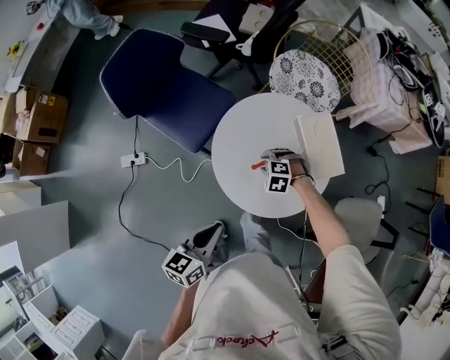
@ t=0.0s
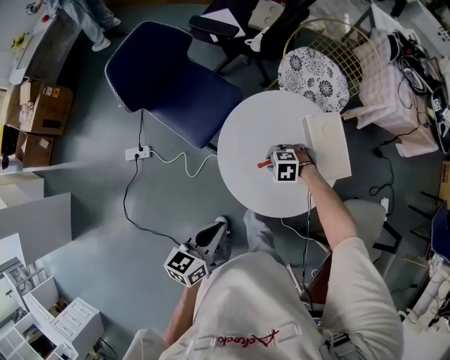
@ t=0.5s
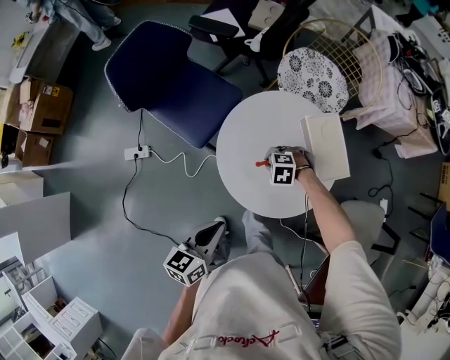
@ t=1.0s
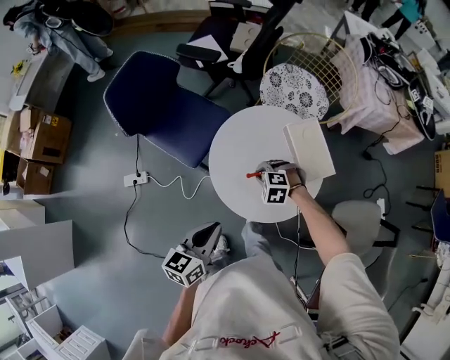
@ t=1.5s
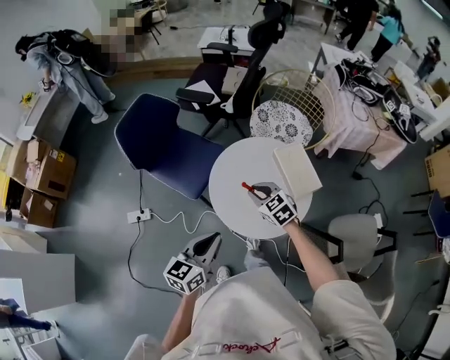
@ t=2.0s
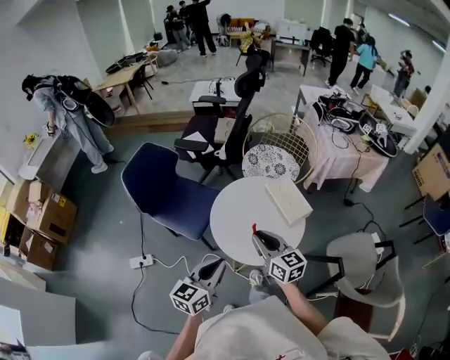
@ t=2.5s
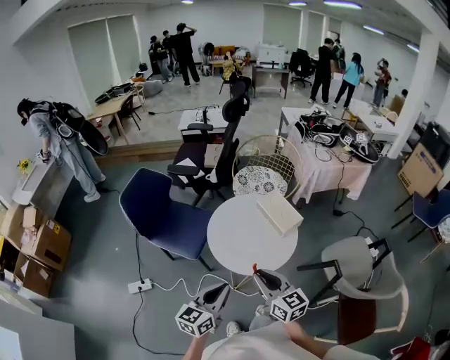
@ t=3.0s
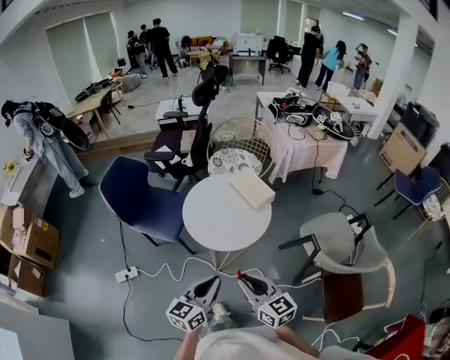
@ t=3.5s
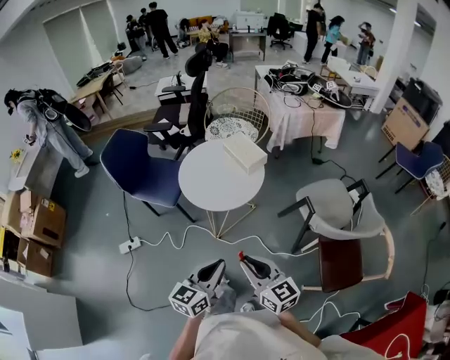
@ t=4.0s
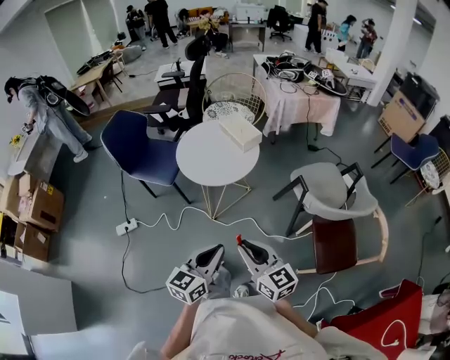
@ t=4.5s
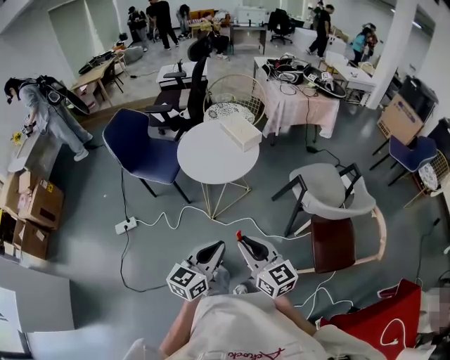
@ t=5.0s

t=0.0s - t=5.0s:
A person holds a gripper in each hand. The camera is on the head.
t=0.0s - t=2.5s: The right gripper moves upward, about 30 cm, tips its fingers upward by about 70 degrees, and closes. Meanwhile the left gripper goes about 10 cm upward, and swivels about 20 degrees.
t=2.5s - t=5.0s: The left gripper is displaced backward and to the right by approximately 40 cm. The right gripper goes approximately 40 cm backward.

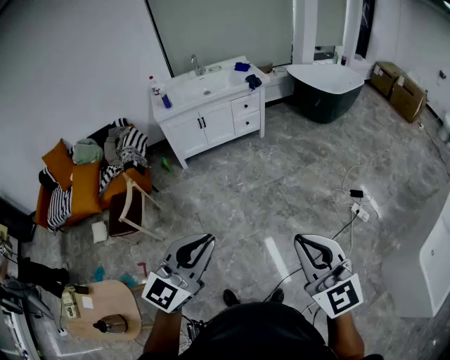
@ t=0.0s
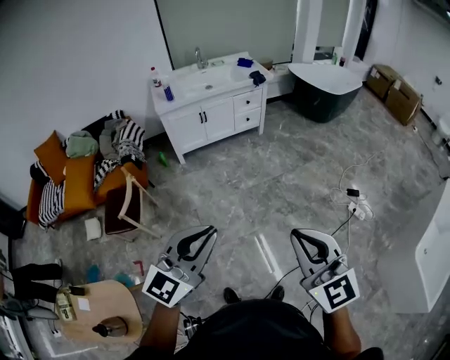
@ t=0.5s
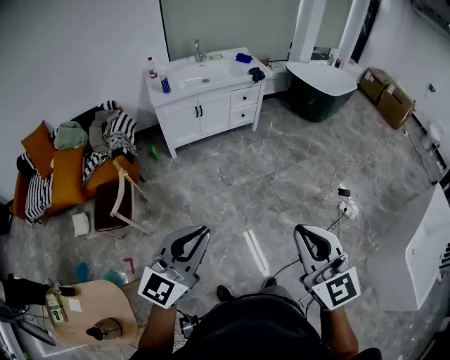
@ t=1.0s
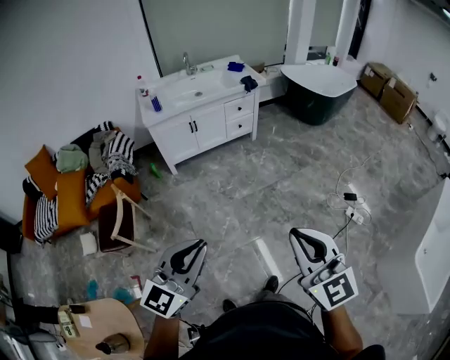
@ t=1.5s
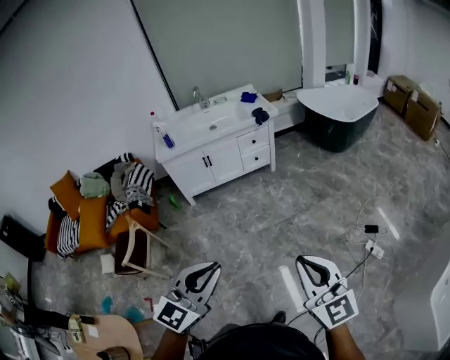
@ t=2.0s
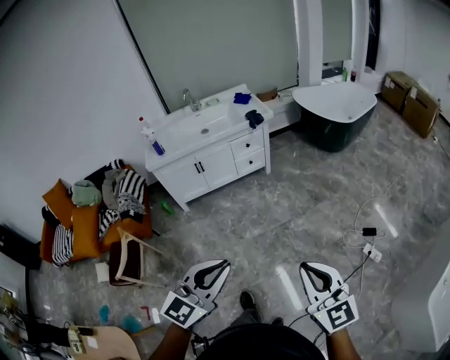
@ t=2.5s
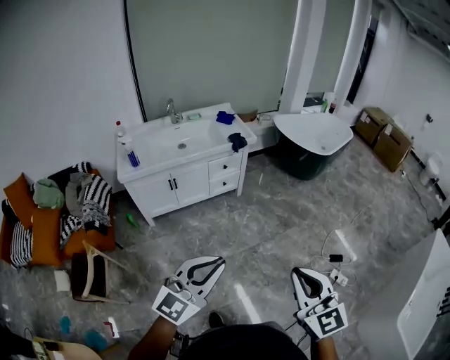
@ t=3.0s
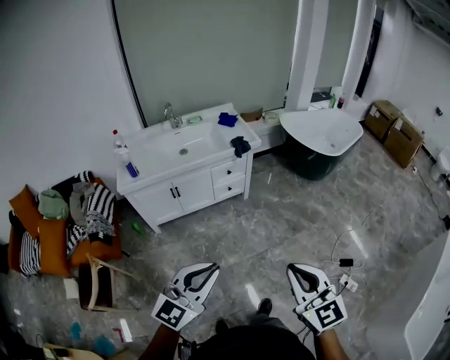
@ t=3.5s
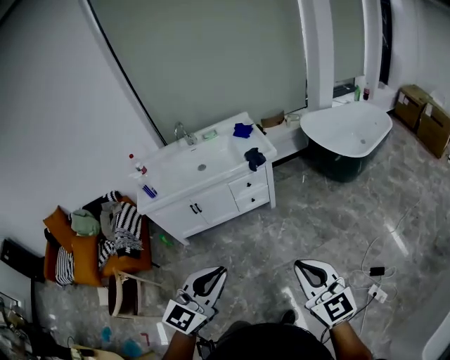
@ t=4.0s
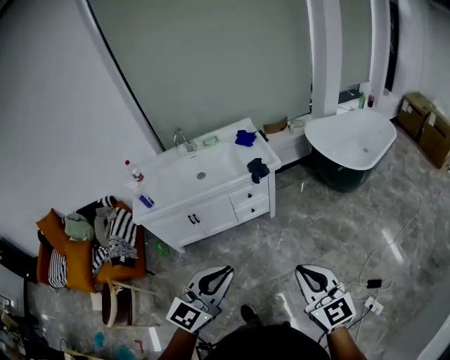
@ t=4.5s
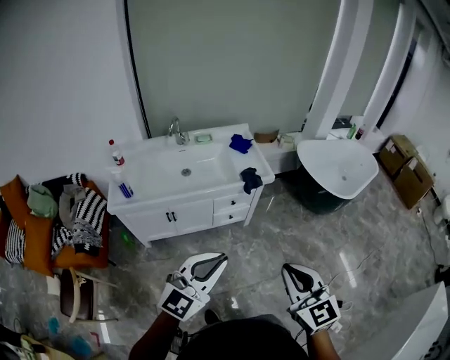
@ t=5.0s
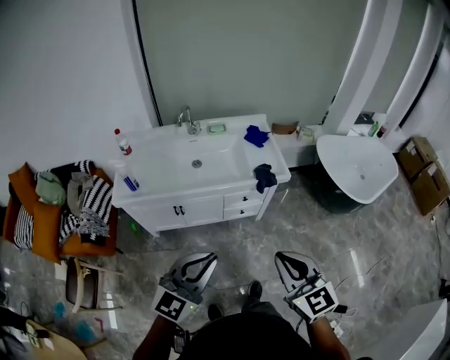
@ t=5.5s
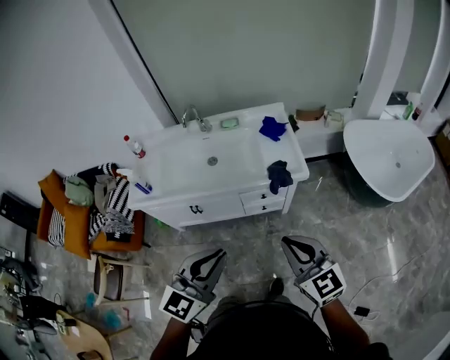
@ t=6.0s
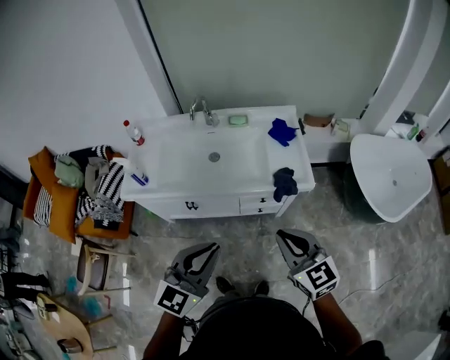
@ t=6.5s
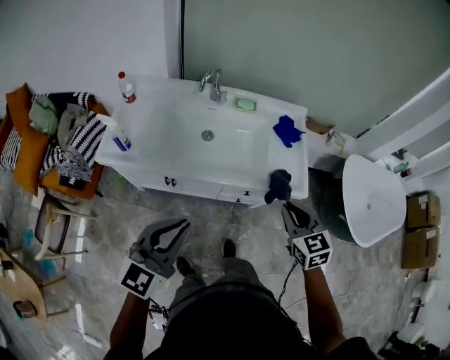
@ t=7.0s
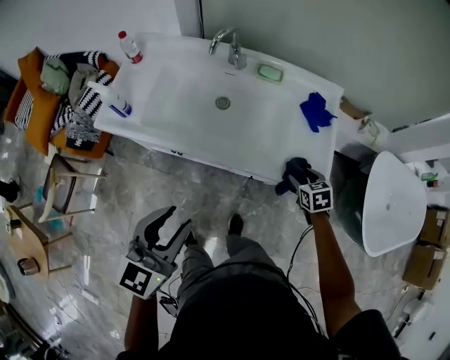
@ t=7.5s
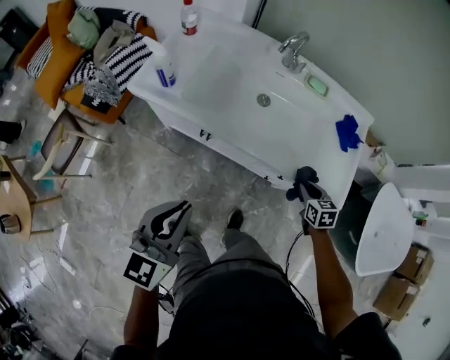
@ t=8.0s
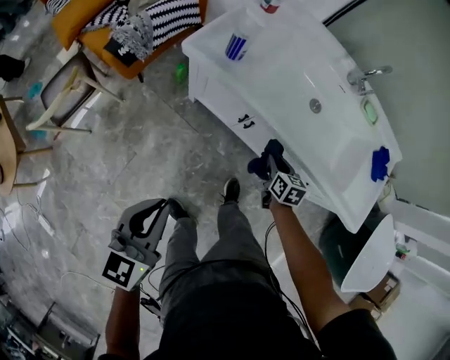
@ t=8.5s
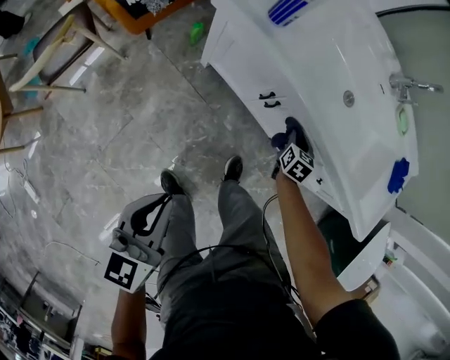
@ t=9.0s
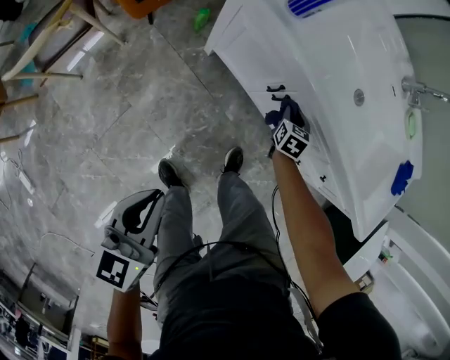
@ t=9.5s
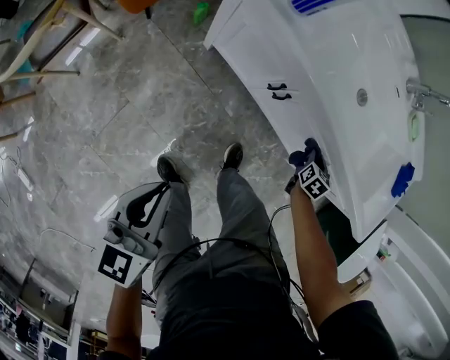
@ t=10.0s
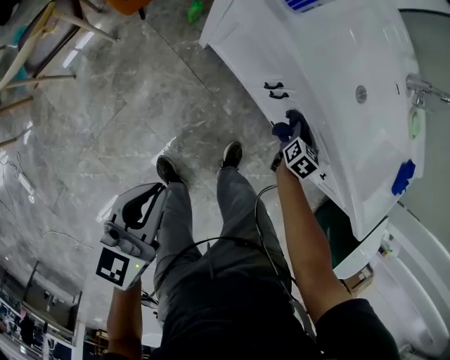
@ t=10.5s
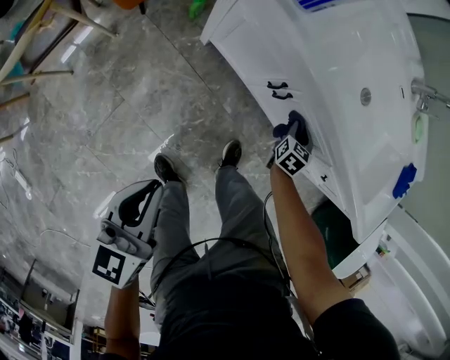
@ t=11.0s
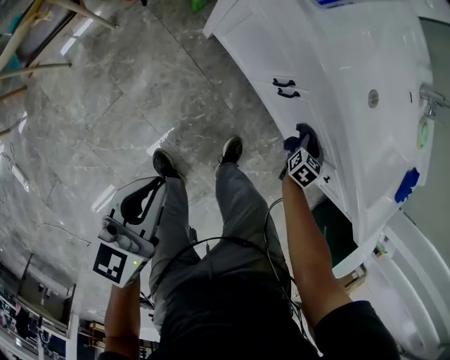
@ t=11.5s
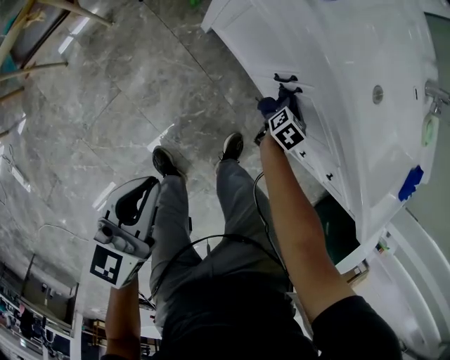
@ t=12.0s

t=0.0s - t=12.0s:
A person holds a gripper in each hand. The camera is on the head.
t=0.0s - t=2.0s: The two grippers go roughly 20 cm forward.
t=2.0s - t=4.0s: Both grippers move forward, some 40 cm.
t=4.0s - t=6.0s: Both grippers travel together forward, about 35 cm.
t=6.0s - t=8.0s: The left gripper goes some 25 cm to the left, forward and downward, swivels approximately 40 degrees, and opens, then closes again, while the right gripper is displaced forward and downward by approximately 40 cm, tilts its fingers some 40 degrees downward, and opens, then closes again.
t=8.0s - t=10.0s: The two grippers go approximately 30 cm downward and to the left. The right gripper swivels about 20 degrees; the left gripper rotates some 30 degrees.
t=10.0s - t=12.0s: The left gripper goes some 5 cm downward; the right gripper goes left and right, approximately 15 cm each way, reversing 2 times.

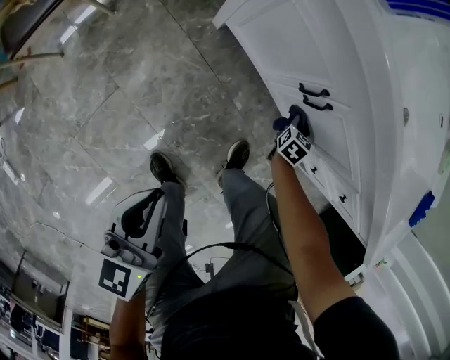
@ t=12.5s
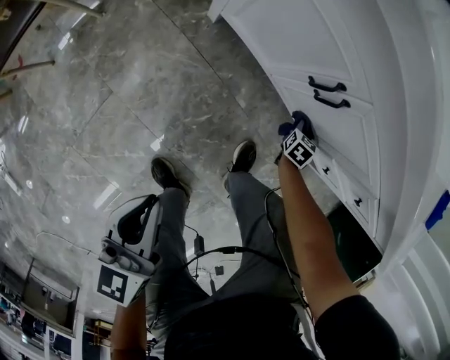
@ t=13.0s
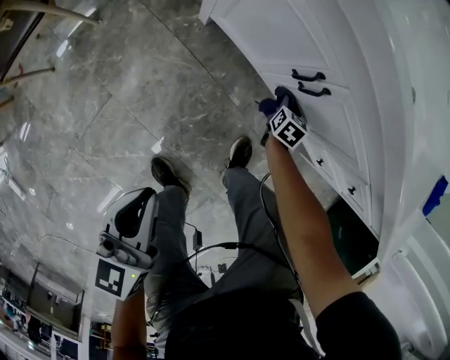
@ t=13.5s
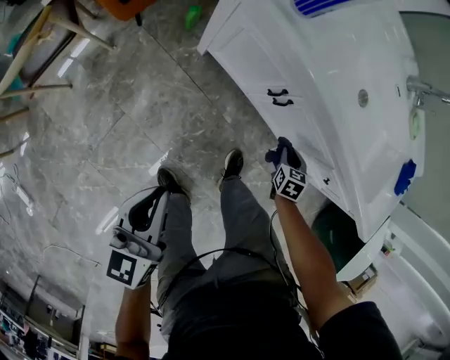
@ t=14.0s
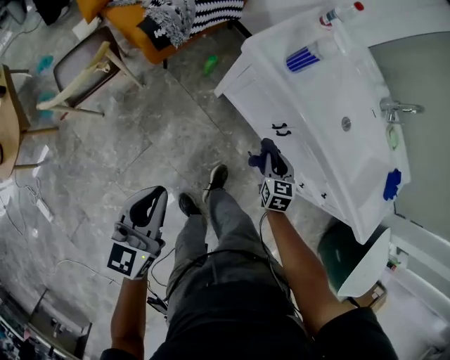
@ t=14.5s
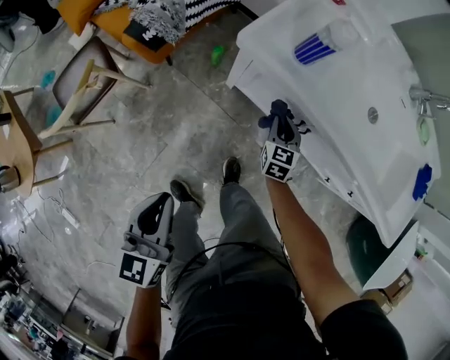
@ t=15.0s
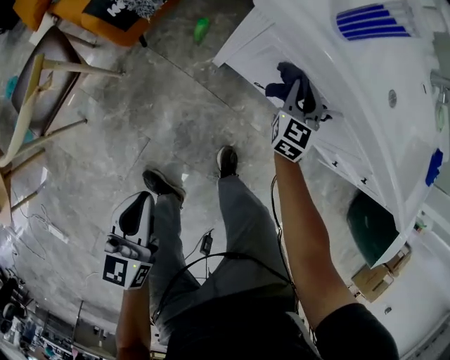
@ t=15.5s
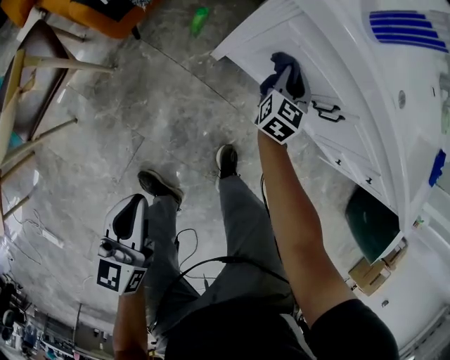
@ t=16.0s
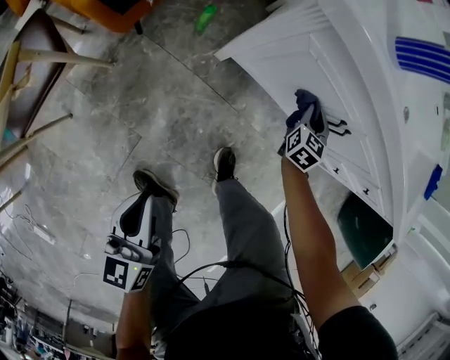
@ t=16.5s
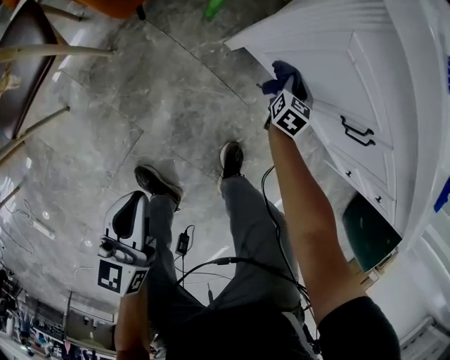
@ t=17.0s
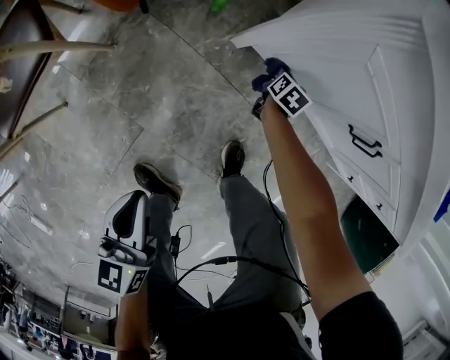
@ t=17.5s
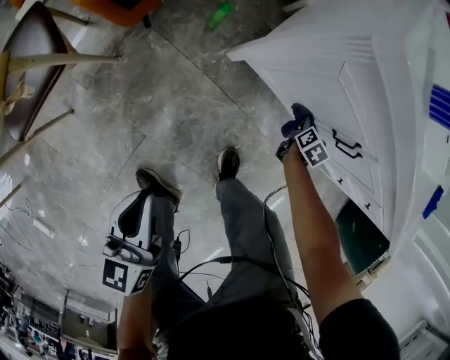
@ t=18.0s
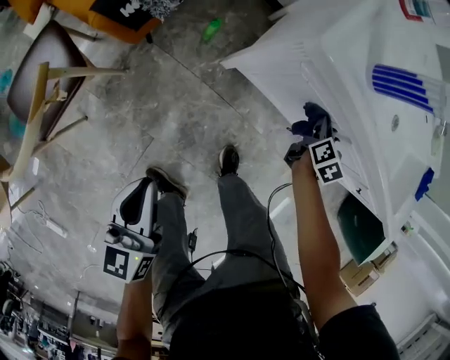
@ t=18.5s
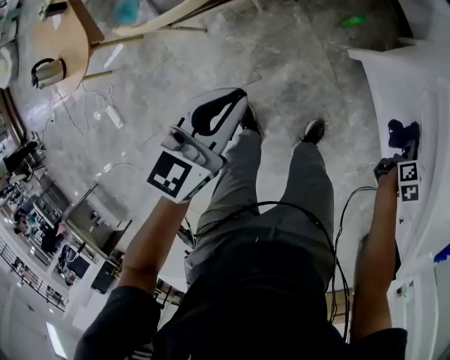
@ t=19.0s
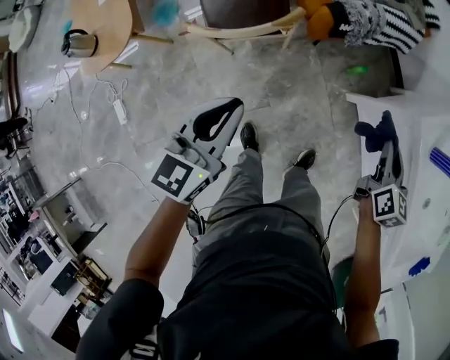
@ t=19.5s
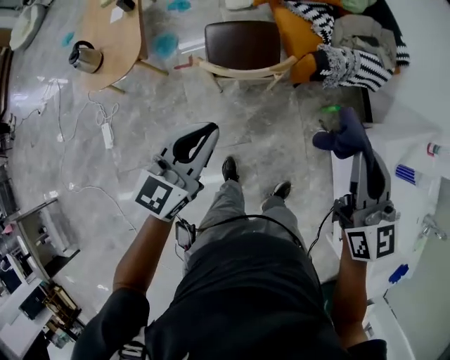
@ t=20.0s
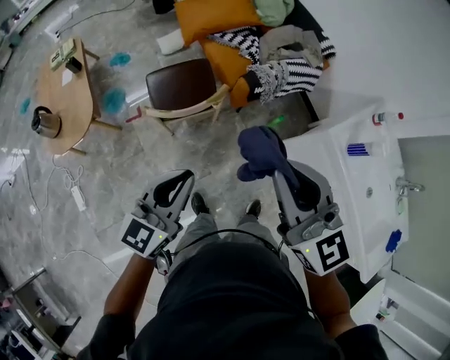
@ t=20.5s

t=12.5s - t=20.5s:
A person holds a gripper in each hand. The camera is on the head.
t=12.5s - t=14.5s: Both grippers travel together upward and to the left, approximately 30 cm. The right gripper turns by roughly 30 degrees.
t=14.5s - t=16.5s: The left gripper shifts about 30 cm downward. Meanwhile the right gripper travels downward and forward by some 25 cm, and changes its angle by some 30 degrees.
t=16.5s - t=18.5s: The right gripper goes downward and returns, some 20 cm each way, and turns by some 30 degrees; the left gripper is displaced upward, forward and to the left by some 10 cm.
t=18.5s - t=20.5s: The left gripper shifts roughly 35 cm upward, and swivels about 20 degrees. Meanwhile the right gripper ends up roughly 80 cm from where it was, and changes its angle by some 100 degrees.

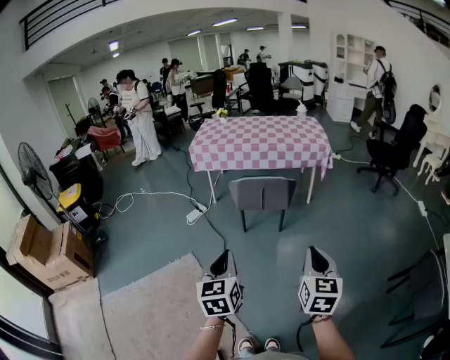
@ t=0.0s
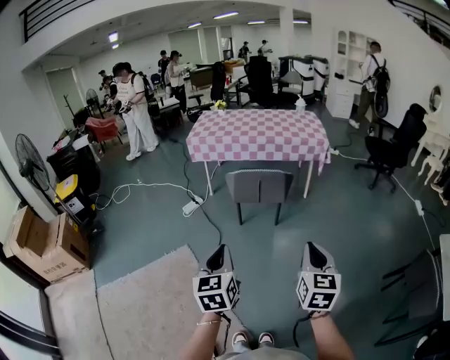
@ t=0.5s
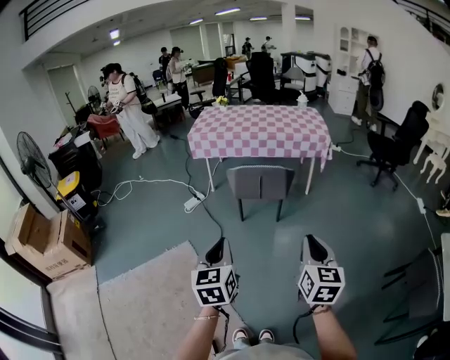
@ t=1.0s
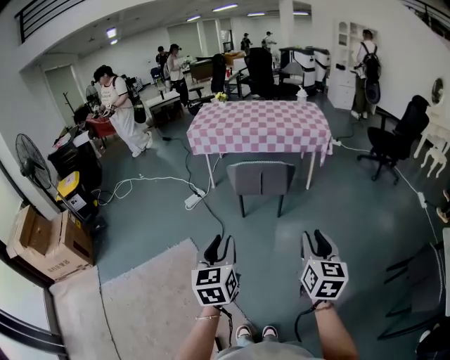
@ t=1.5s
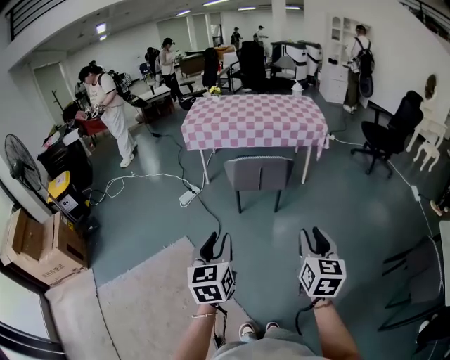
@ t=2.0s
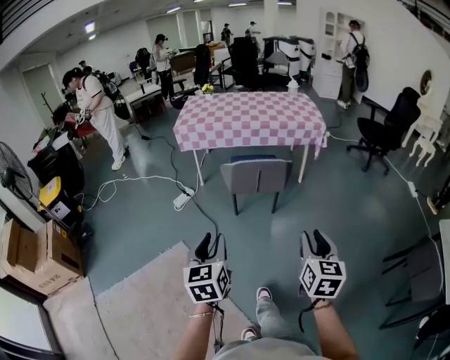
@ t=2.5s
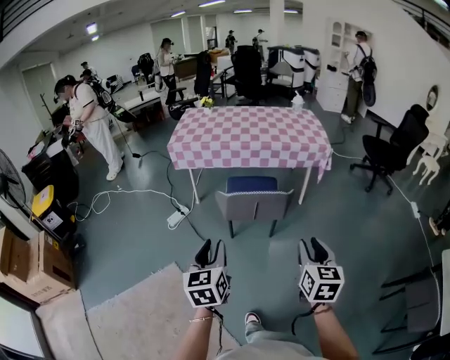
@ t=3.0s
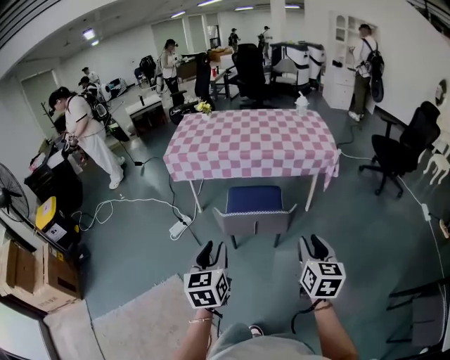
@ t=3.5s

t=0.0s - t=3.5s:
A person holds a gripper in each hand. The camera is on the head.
t=0.0s - t=2.0s: The right gripper opens its fingers; the left gripper moves approximately 5 cm, and opens its fingers.
t=2.0s - t=3.5s: Both grippers move forward, roughly 35 cm.
